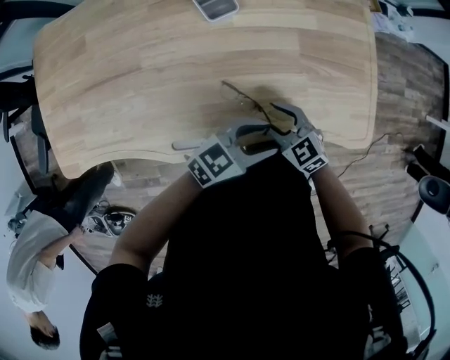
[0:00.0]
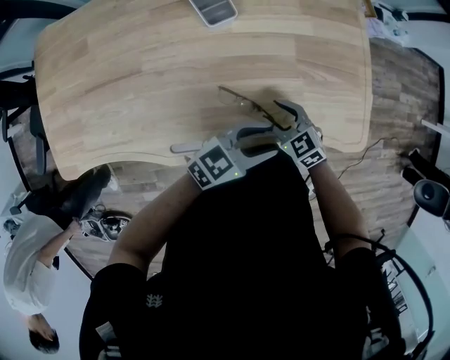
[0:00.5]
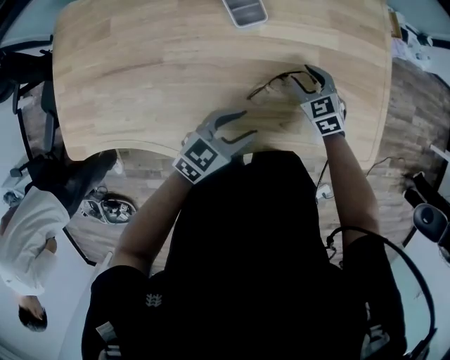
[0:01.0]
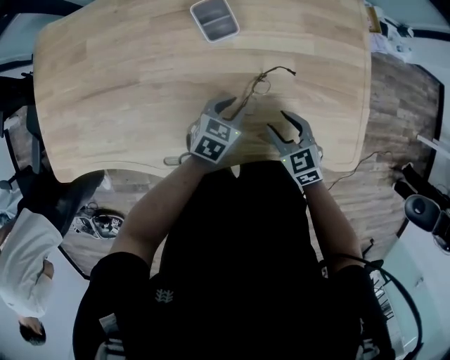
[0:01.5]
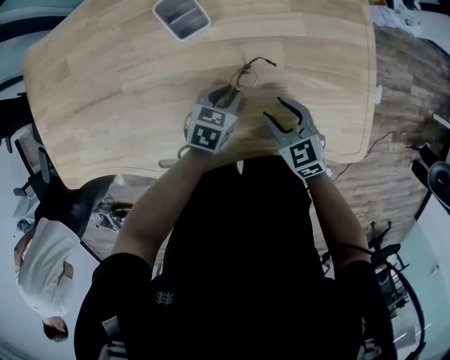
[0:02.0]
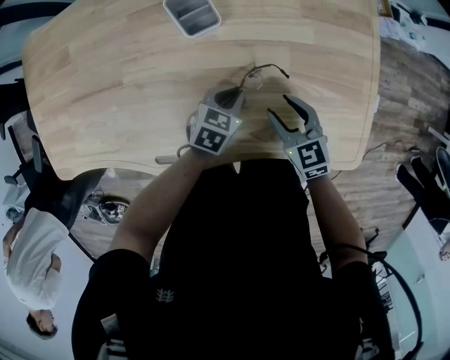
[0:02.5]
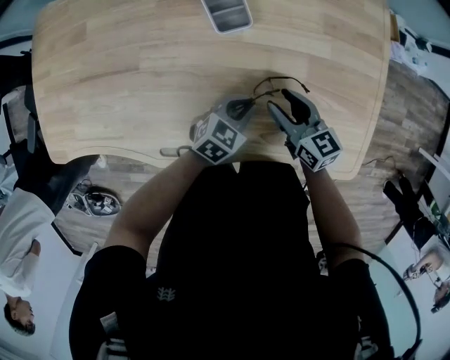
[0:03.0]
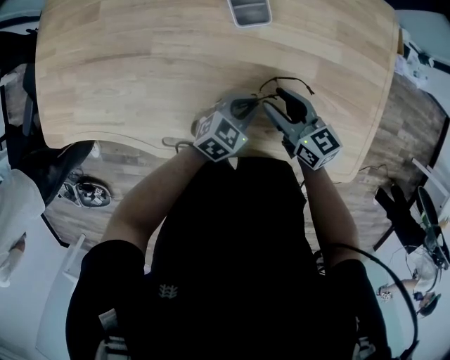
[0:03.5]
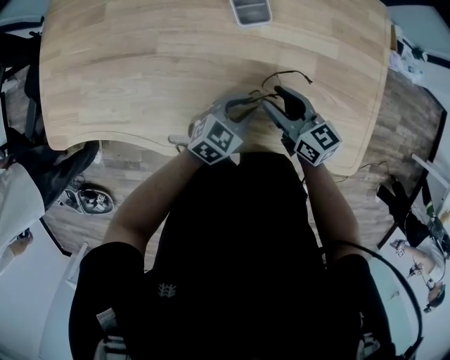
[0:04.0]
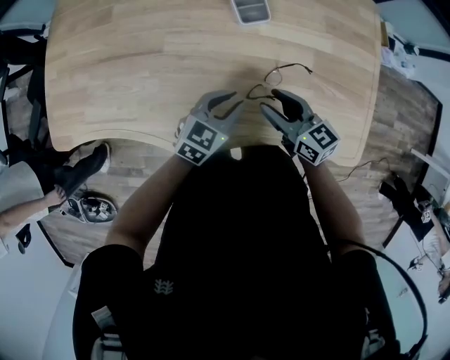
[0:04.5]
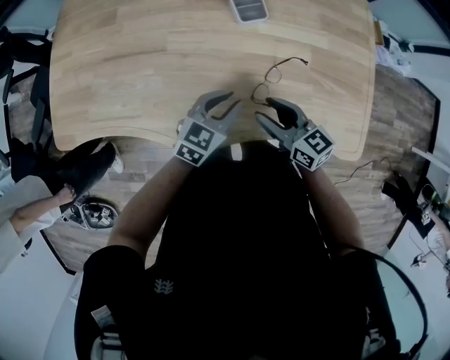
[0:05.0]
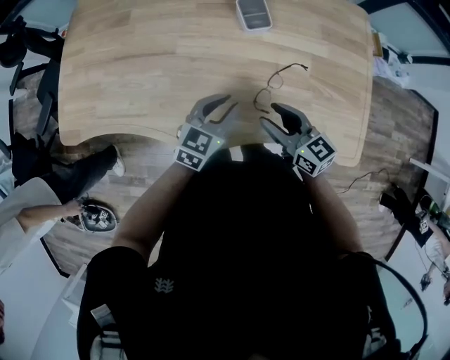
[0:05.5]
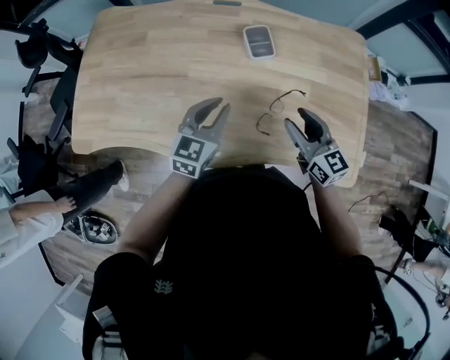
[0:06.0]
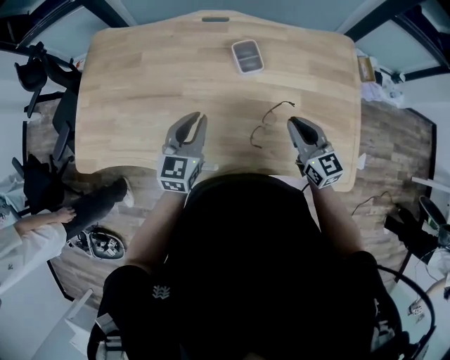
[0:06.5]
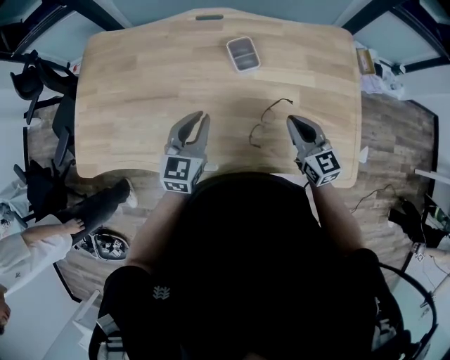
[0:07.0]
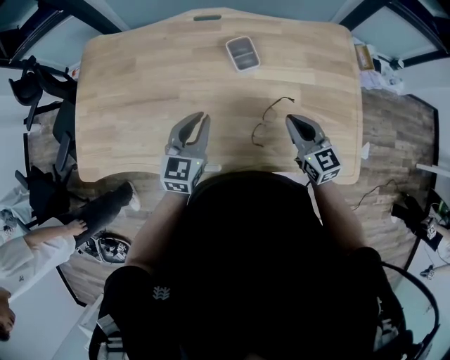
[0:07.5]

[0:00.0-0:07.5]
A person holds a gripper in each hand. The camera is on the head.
0:00.0 to 0:02.0: The right gripper shifts by roughly 10 cm. Meanwhile the left gripper moves roughly 20 cm, points its fingers some 30 degrees further downward, and closes its fingers.
0:02.0 to 0:04.0: The left gripper travels upward and backward by roughly 10 cm, and turns by approximately 20 degrees. The right gripper travels to the left and upward by approximately 15 cm, and rotates about 30 degrees.
0:04.0 to 0:05.5: The left gripper goes some 15 cm upward and to the left. The right gripper goes approximately 10 cm backward and upward.
0:05.5 to 0:07.5: The right gripper heads to the right and forward, covering approximately 10 cm, turns by some 20 degrees, and closes its fingers; the left gripper moves upward, forward and to the left, roughly 10 cm.

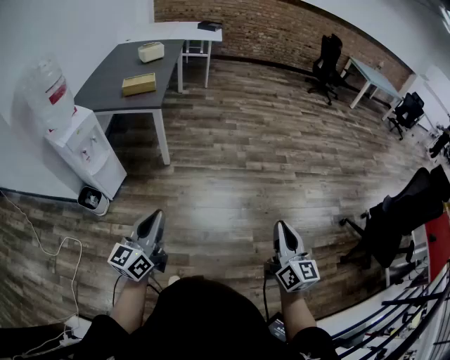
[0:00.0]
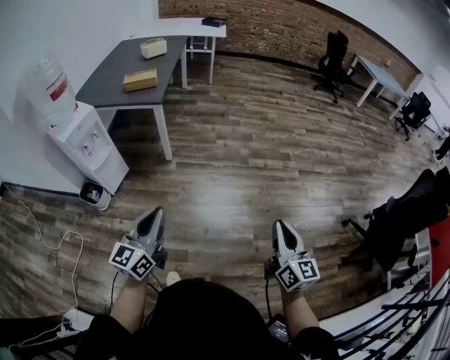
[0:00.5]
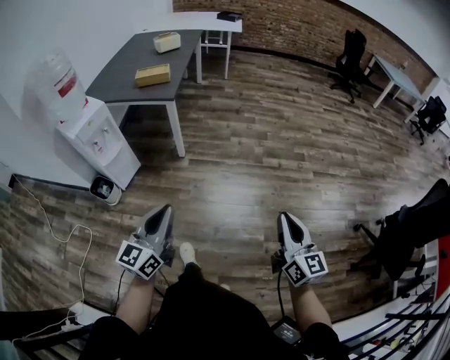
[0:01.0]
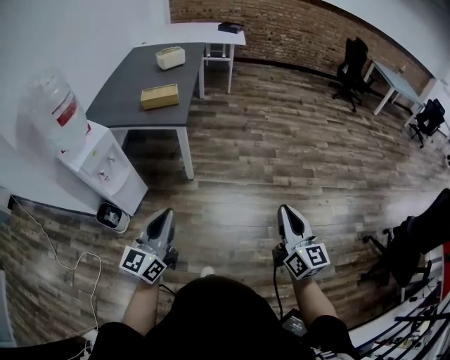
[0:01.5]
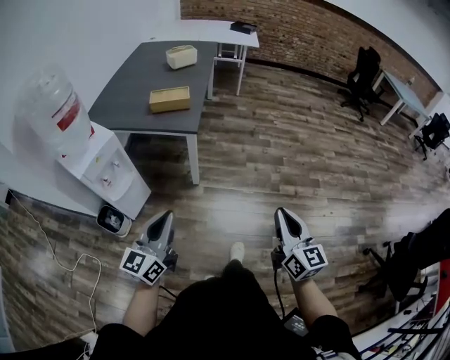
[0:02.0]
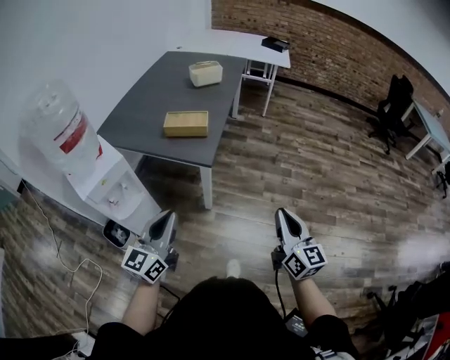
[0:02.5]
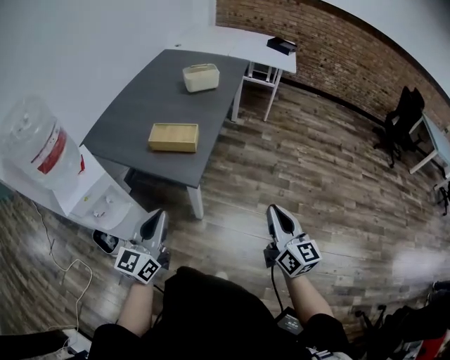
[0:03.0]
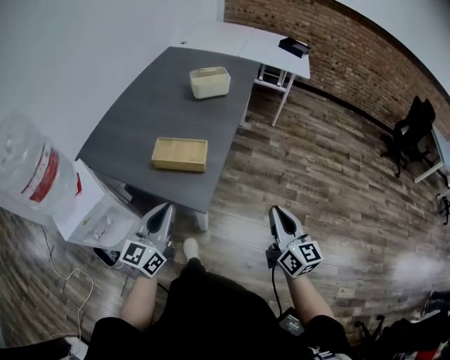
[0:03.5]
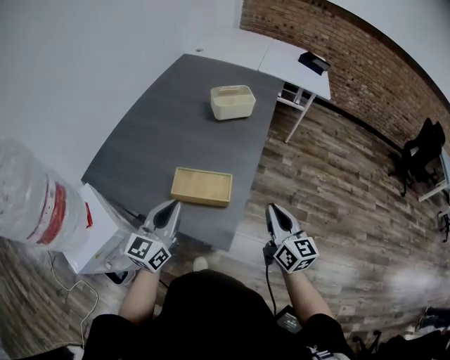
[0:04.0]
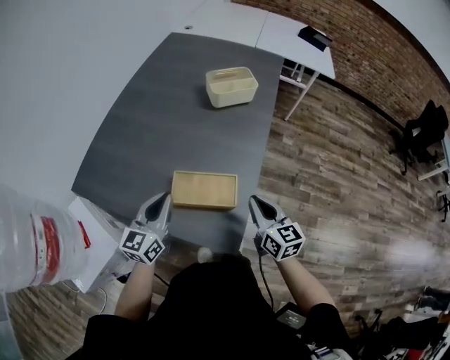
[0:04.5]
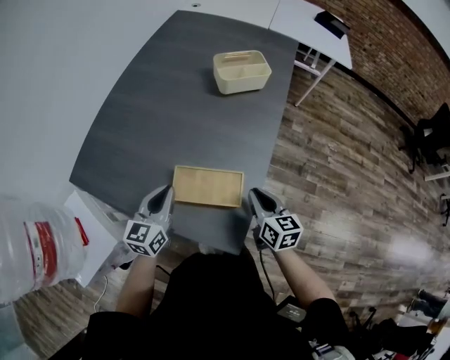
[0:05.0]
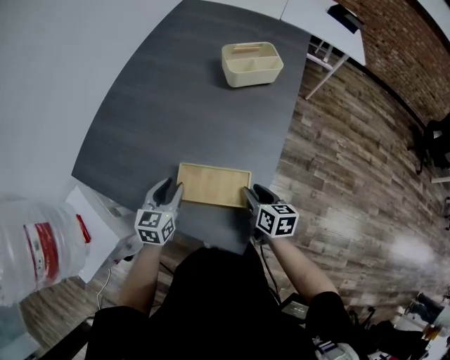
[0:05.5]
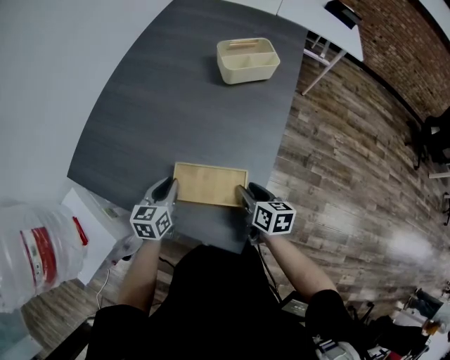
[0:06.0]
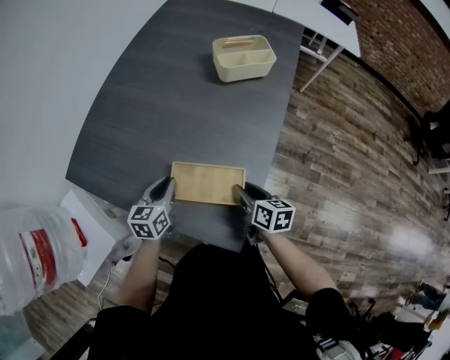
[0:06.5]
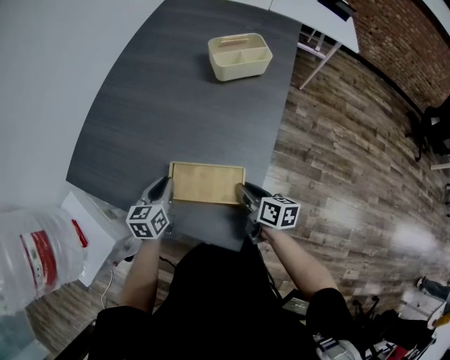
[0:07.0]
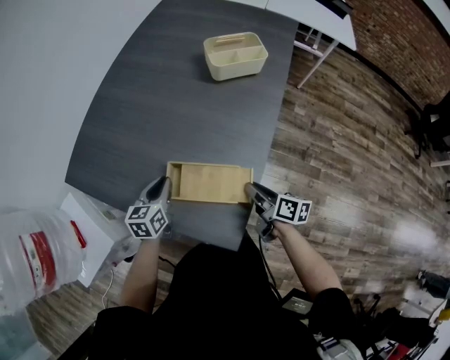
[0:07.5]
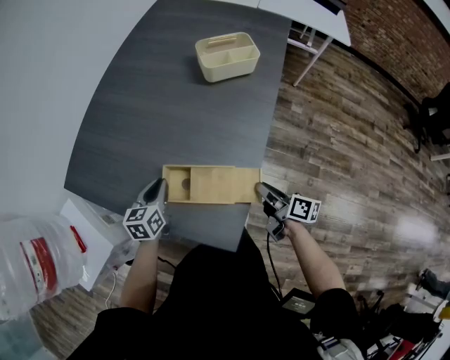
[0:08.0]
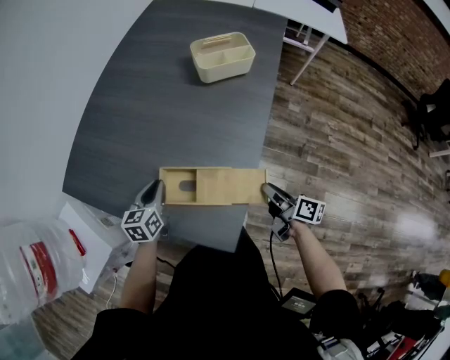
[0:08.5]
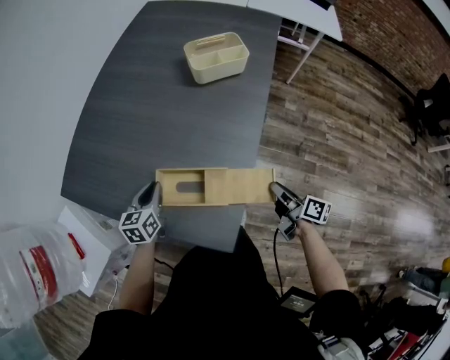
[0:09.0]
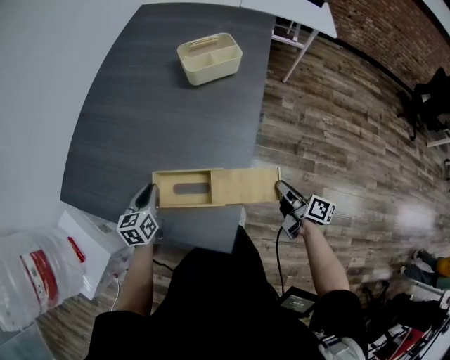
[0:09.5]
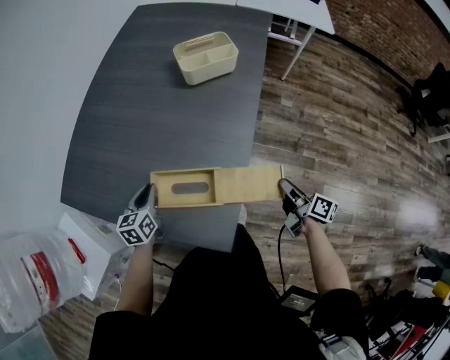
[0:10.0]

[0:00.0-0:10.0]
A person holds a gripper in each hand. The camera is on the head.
0:00.0 to 0:02.0: The two grippers go some 25 cm forward and to the left.
0:02.0 to 0:04.0: Both grippers are carried forward, some 50 cm.
0:04.0 to 0:06.0: The left gripper is displaced downward and forward by some 20 cm, and tilts its fingers about 30 degrees downward. The right gripper shifts approximately 25 cm downward, forward and to the left, points its fingers some 30 degrees further downward, and opens up.
0:06.0 to 0:08.0: The right gripper goes approximately 10 cm to the right, swivels about 30 degrees, and closes its fingers.
0:08.0 to 0:10.0: The right gripper heads to the right, covering approximately 10 cm.

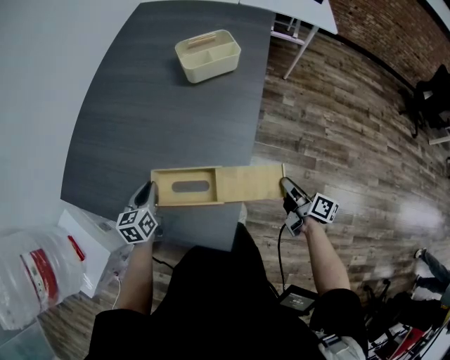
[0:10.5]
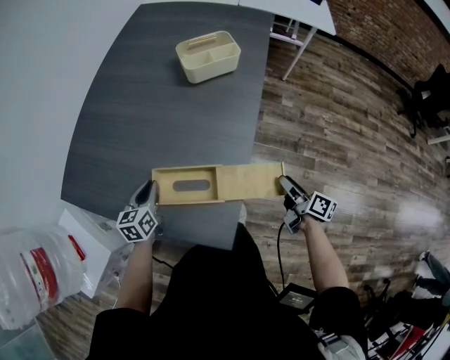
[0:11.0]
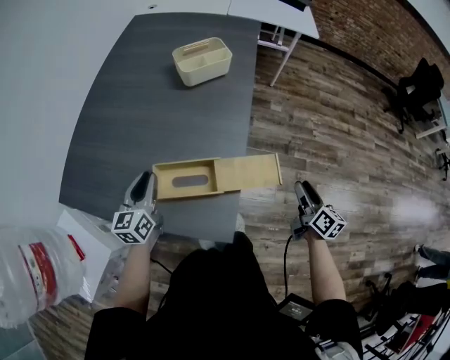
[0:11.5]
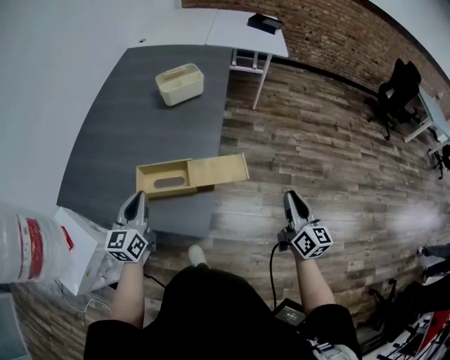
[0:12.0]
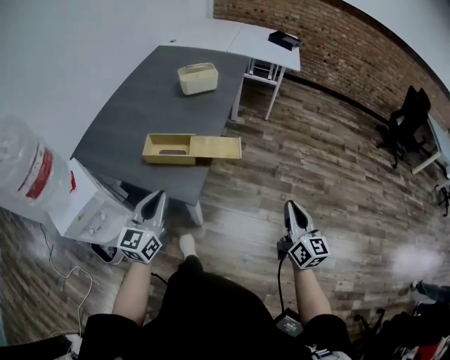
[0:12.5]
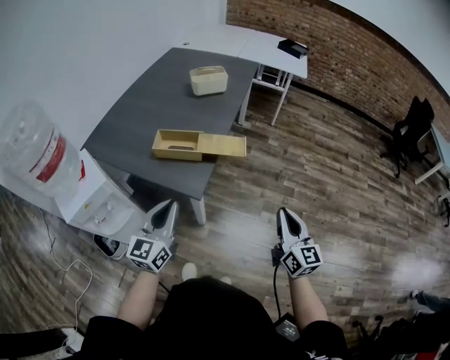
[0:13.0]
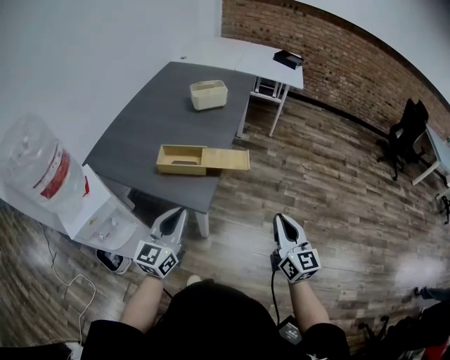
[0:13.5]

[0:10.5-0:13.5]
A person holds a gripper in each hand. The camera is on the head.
0:10.5 to 0:12.0: The right gripper travels backward, upward and to the right by some 20 cm, changes its angle by roughly 50 degrees, and opens and closes again. The left gripper heads upward, backward and to the right, covering some 20 cm, and swivels approximately 30 degrees.
0:12.0 to 0:13.5: The left gripper travels backward and to the right by approximately 25 cm; the right gripper shifts roughly 15 cm backward, and changes its angle by about 20 degrees.

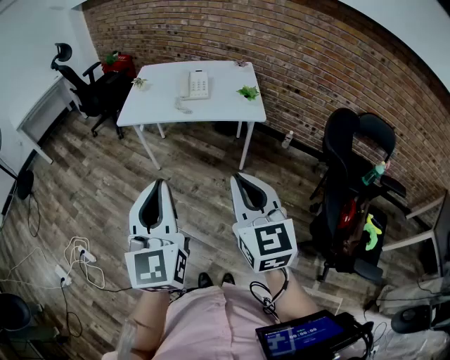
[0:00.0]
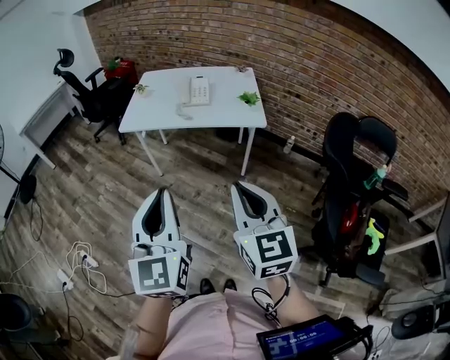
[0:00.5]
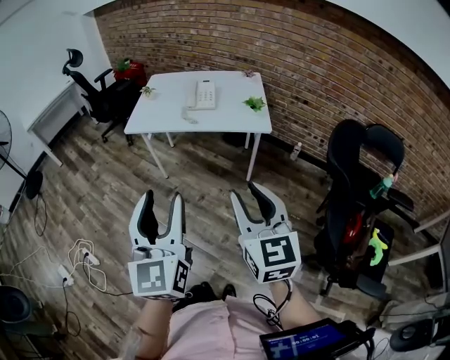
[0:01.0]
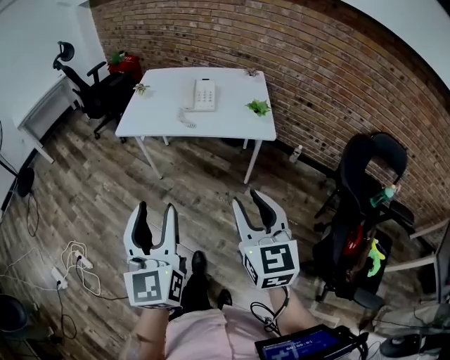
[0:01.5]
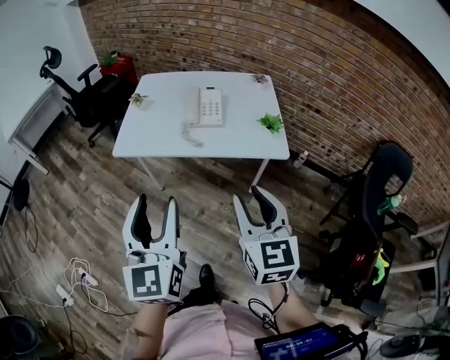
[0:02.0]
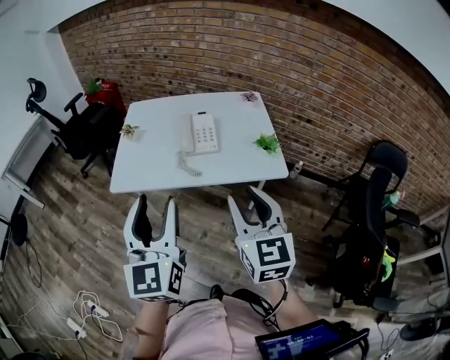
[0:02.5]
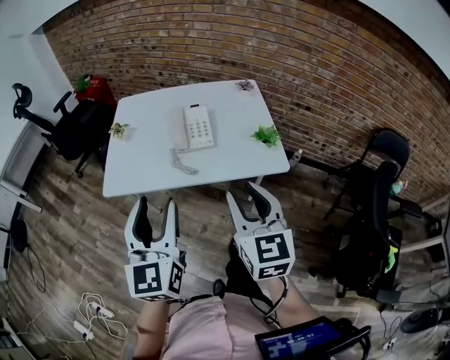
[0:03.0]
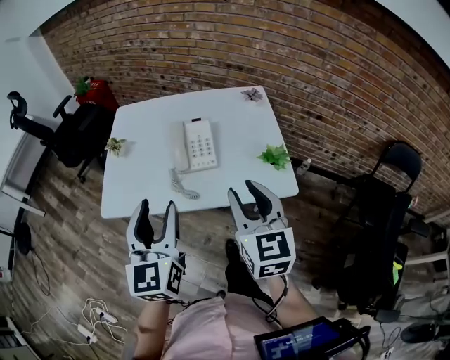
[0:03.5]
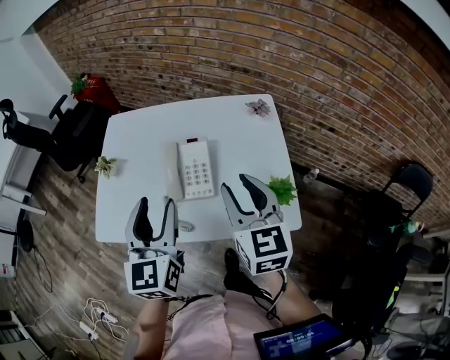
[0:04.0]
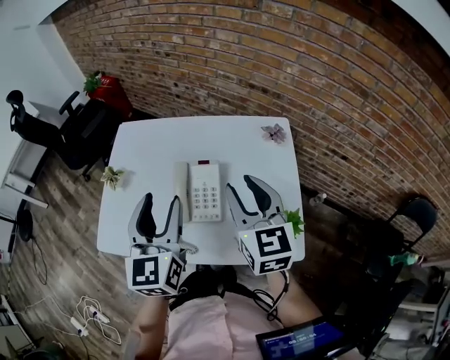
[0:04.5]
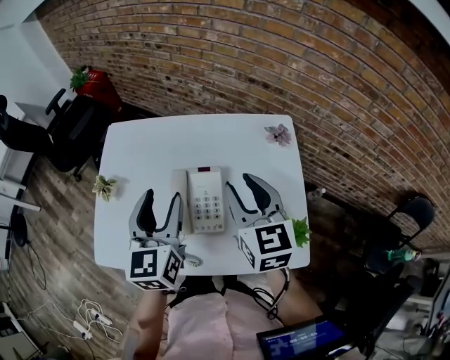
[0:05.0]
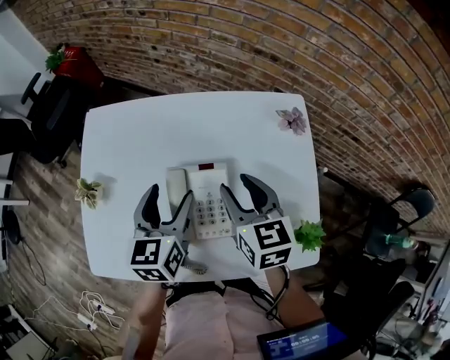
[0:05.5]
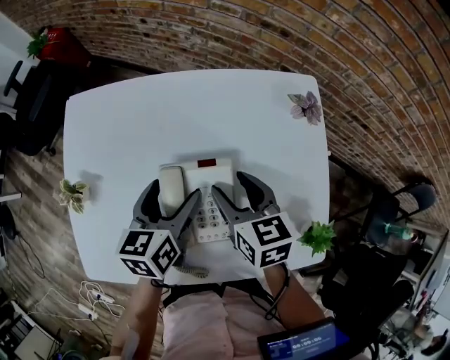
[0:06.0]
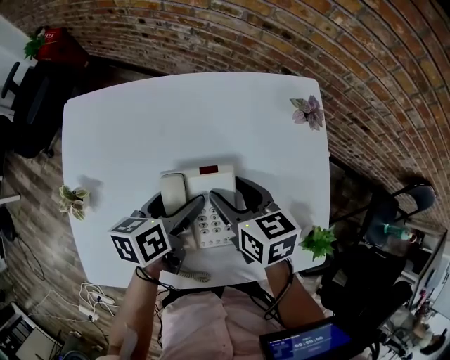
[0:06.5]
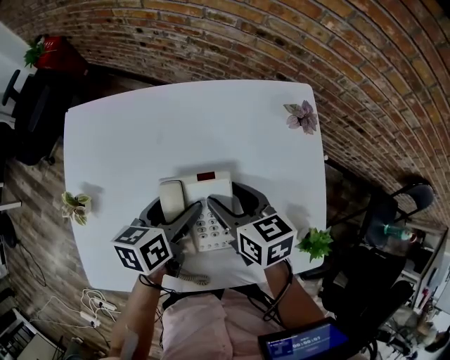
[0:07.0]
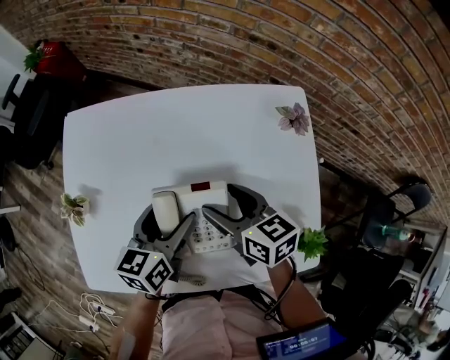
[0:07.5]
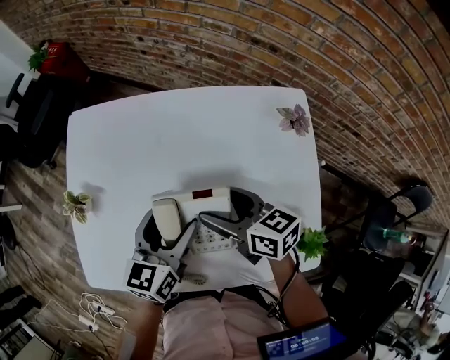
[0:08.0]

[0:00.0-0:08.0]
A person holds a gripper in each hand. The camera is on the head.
0:00.0 to 0:02.0: Both grippers travel together forward, about 20 cm. The left gripper opens its fingers. Meanwhile the right gripper opens up.
0:02.0 to 0:04.0: The two grippers go approximately 35 cm forward.
0:04.0 to 0:06.0: The grippers both shift downward and forward by some 30 cm. The right gripper changes its angle by some 30 degrees. The left gripper changes its angle by roughly 40 degrees, and opens its fingers.
0:06.0 to 0:08.0: The right gripper swivels roughly 30 degrees.
